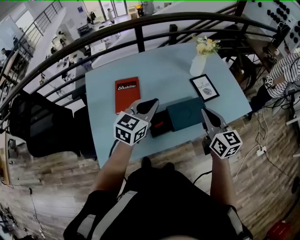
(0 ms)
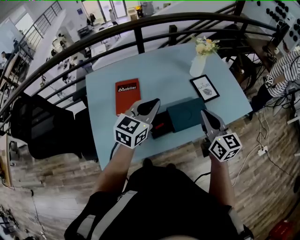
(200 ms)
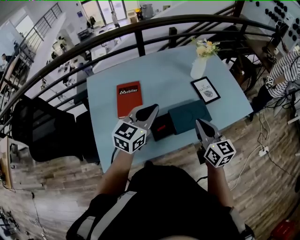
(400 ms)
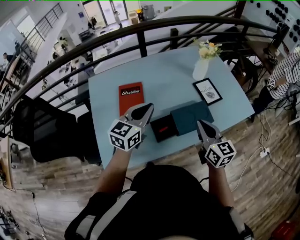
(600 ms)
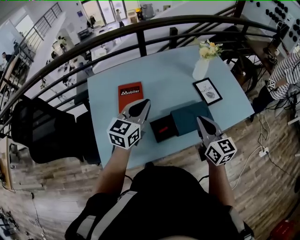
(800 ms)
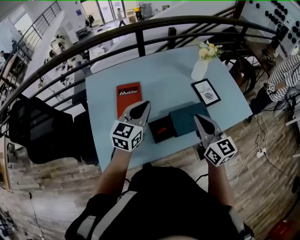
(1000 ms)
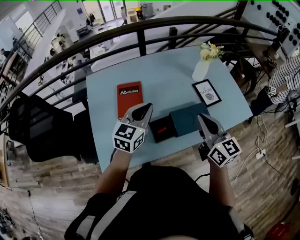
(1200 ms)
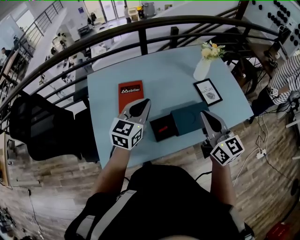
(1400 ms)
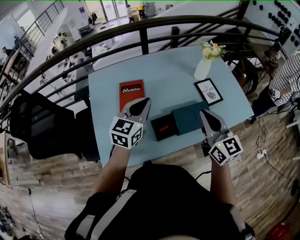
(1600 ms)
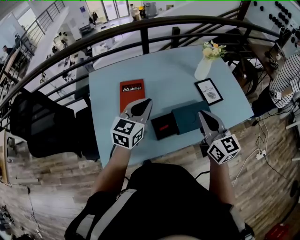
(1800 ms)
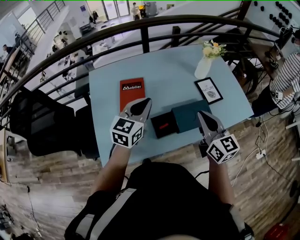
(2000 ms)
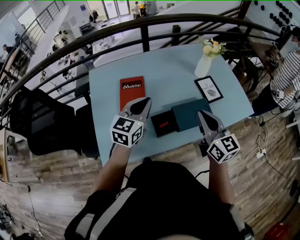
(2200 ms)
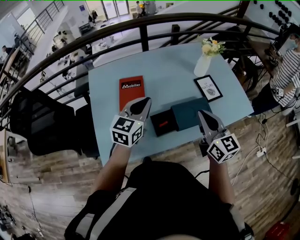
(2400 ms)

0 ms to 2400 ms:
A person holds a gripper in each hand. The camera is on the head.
0 ms to 1200 ms: The right gripper ends up roughly 5 cm from where it was, while the left gripper goes roughly 5 cm to the left.
1200 ms to 2400 ms: The grippers make only small movements.

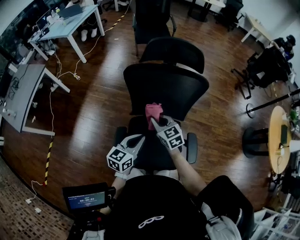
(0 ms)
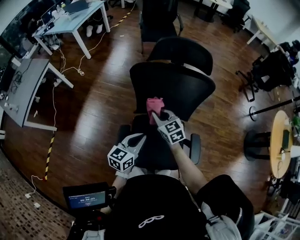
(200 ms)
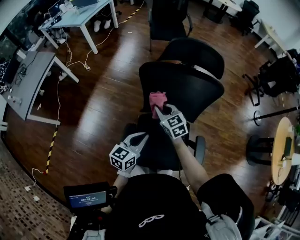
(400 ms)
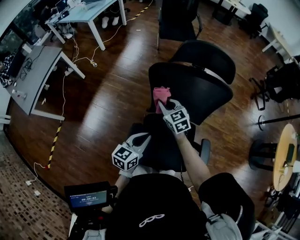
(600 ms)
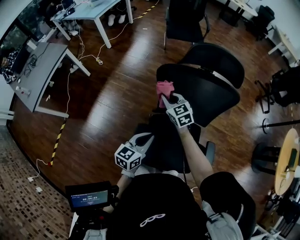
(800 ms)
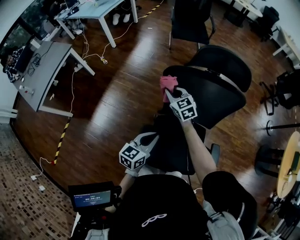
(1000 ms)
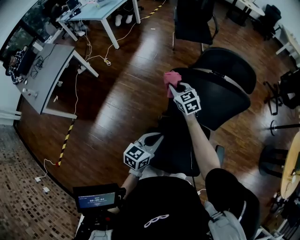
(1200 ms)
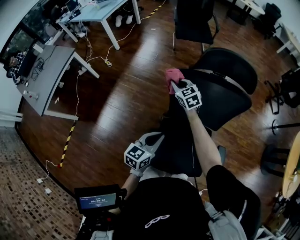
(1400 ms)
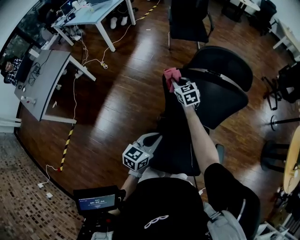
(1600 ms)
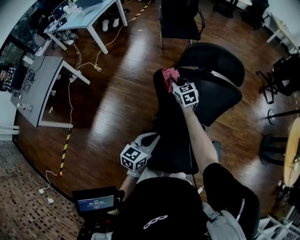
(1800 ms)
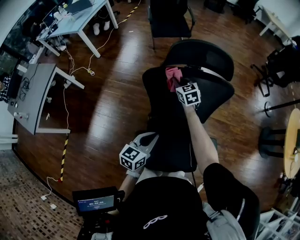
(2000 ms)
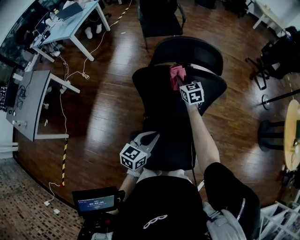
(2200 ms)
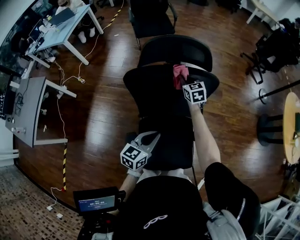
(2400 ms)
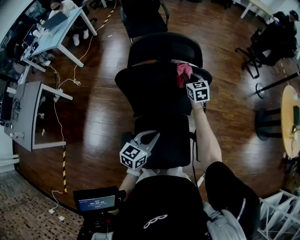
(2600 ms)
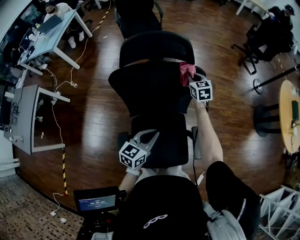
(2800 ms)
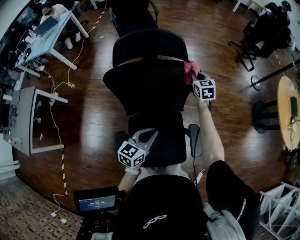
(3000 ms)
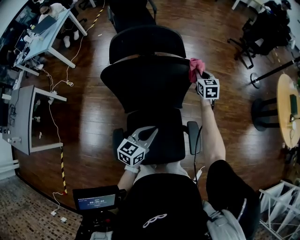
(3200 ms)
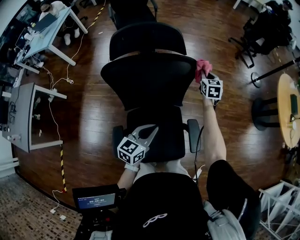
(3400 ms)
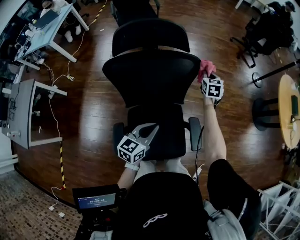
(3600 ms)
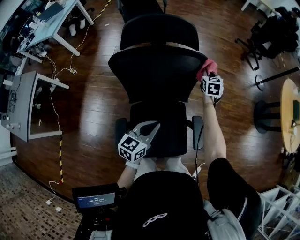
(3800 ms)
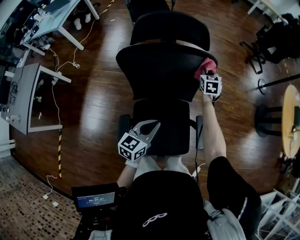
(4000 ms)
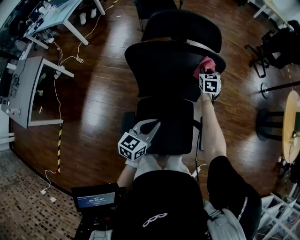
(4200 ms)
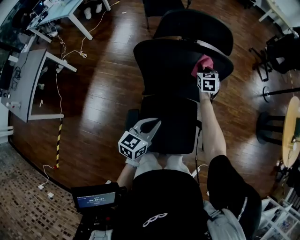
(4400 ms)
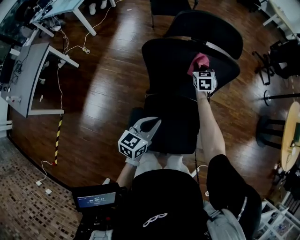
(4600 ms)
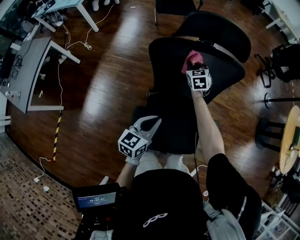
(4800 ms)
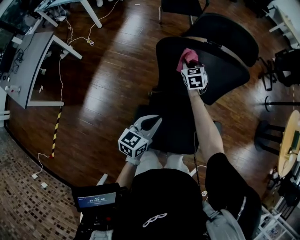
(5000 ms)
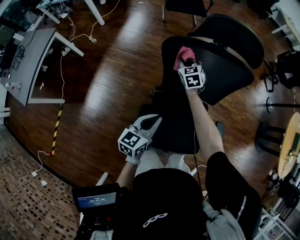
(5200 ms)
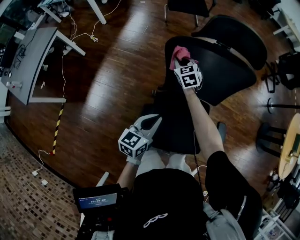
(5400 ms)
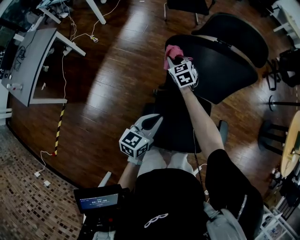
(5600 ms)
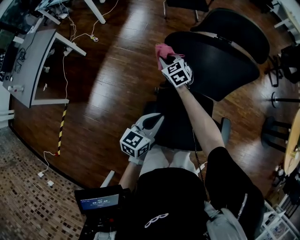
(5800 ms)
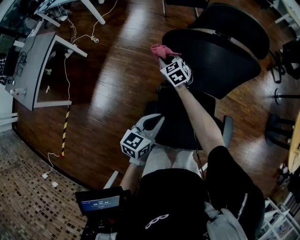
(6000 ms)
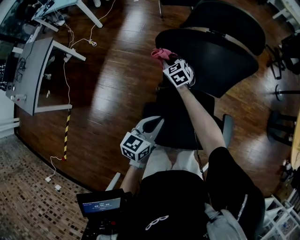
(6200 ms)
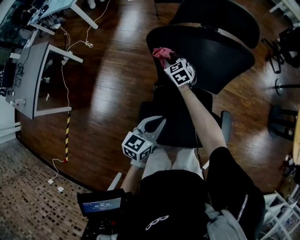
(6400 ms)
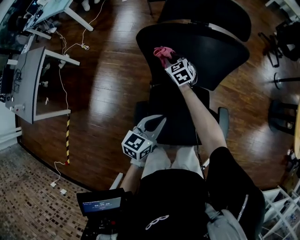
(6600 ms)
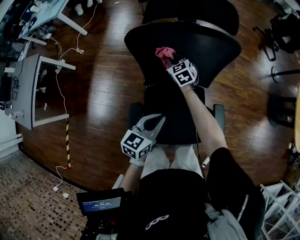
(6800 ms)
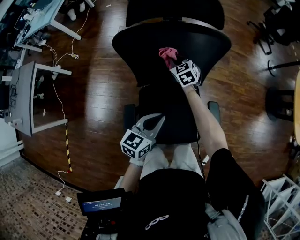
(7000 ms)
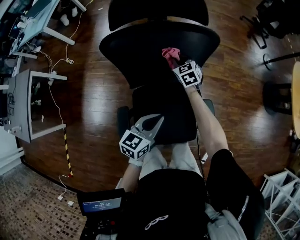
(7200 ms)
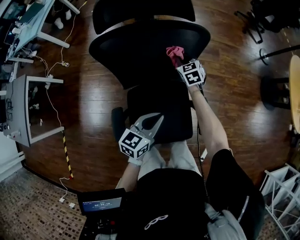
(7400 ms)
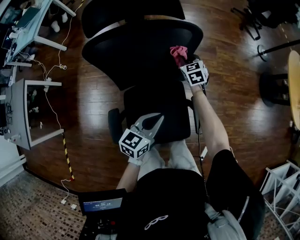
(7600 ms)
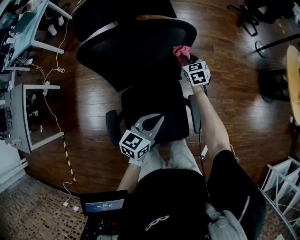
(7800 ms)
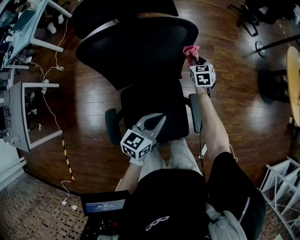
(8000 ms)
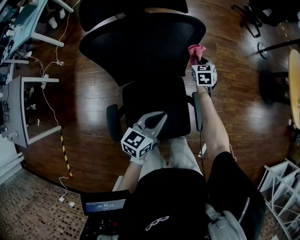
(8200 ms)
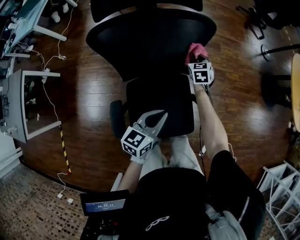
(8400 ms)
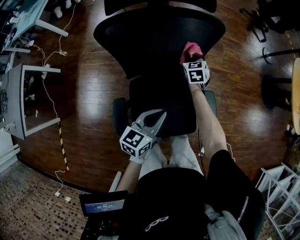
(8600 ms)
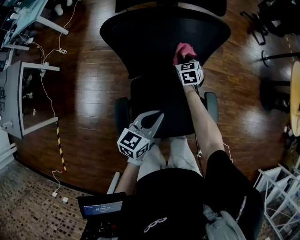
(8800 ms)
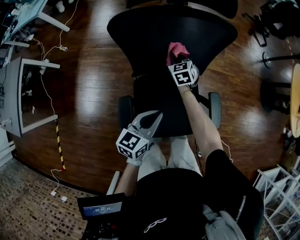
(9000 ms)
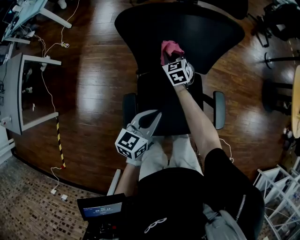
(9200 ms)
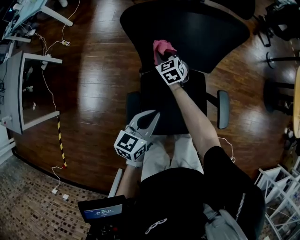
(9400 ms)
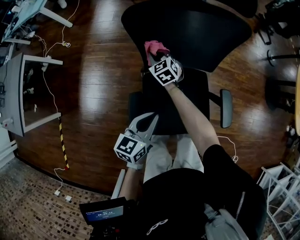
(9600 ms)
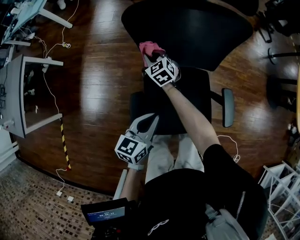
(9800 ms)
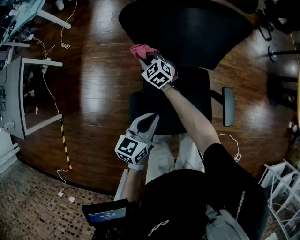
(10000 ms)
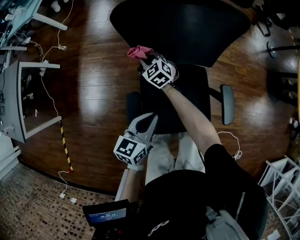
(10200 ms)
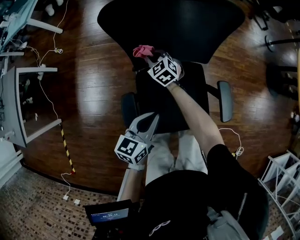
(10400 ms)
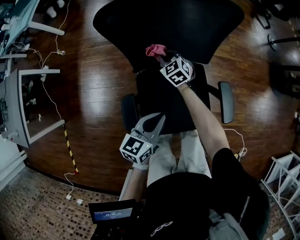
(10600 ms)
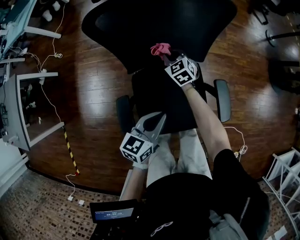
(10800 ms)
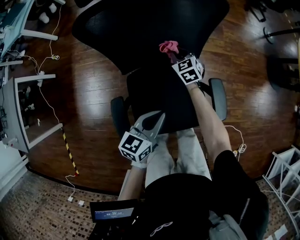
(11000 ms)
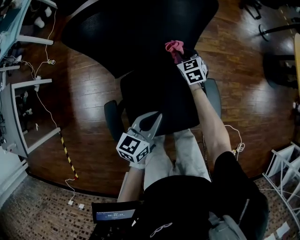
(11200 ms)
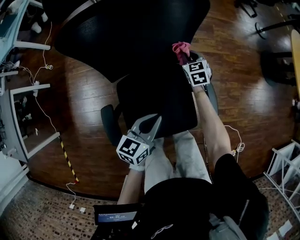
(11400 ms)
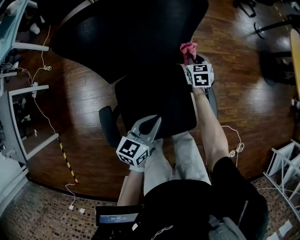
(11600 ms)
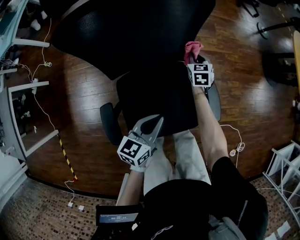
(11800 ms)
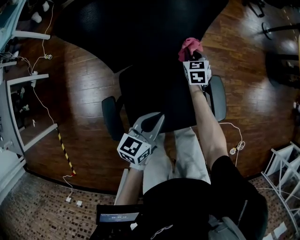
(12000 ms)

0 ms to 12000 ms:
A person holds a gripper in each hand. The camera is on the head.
0 ms to 1600 ms: The left gripper shifts approximately 10 cm to the left and forward. The right gripper shifts approximately 25 cm forward and to the left.
1600 ms to 3000 ms: The left gripper travels to the right by about 20 cm; the right gripper moves to the right, roughly 40 cm, and turns by some 30 degrees.
3000 ms to 4400 ms: The right gripper heads to the left, downward and backward, covering some 15 cm; the left gripper moves to the left and backward, some 10 cm.
4400 ms to 6000 ms: The left gripper shifts roughly 10 cm to the left. The right gripper goes roughly 35 cm to the left, and swivels some 40 degrees.
6000 ms to 7600 ms: The left gripper is displaced to the right by some 20 cm. The right gripper is displaced to the right by some 40 cm, and swivels some 30 degrees.
7600 ms to 9000 ms: The left gripper goes some 10 cm to the left and backward; the right gripper shifts approximately 15 cm to the left and backward.
9000 ms to 10400 ms: The left gripper shifts by some 5 cm, while the right gripper heads to the left and downward, covering roughly 15 cm.
10400 ms to 12000 ms: The left gripper travels to the right by some 10 cm; the right gripper is displaced to the right by roughly 30 cm, and turns by approximately 40 degrees.

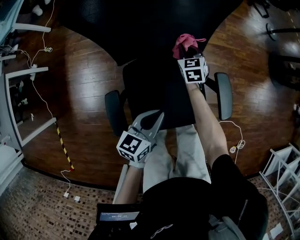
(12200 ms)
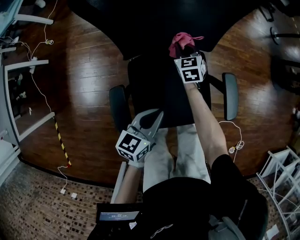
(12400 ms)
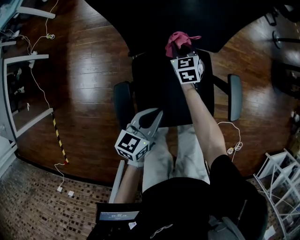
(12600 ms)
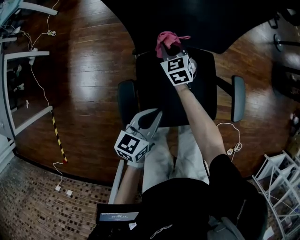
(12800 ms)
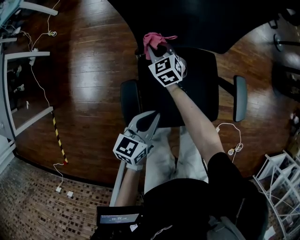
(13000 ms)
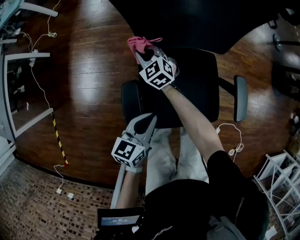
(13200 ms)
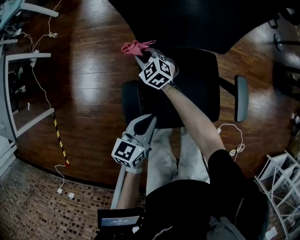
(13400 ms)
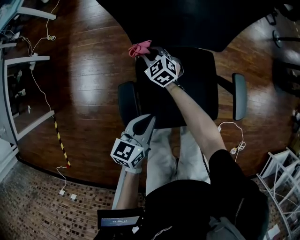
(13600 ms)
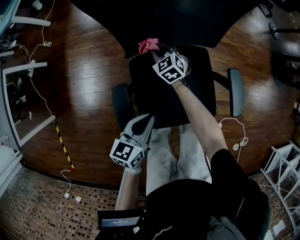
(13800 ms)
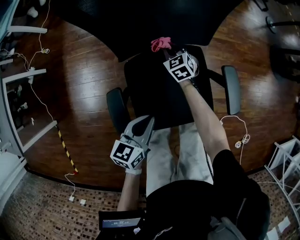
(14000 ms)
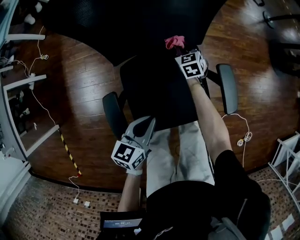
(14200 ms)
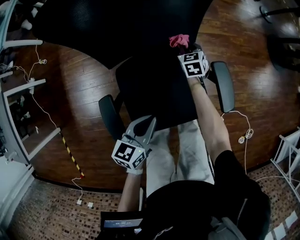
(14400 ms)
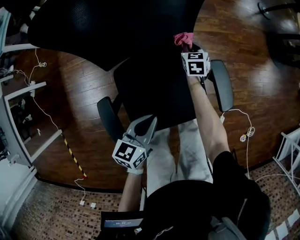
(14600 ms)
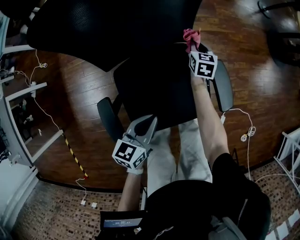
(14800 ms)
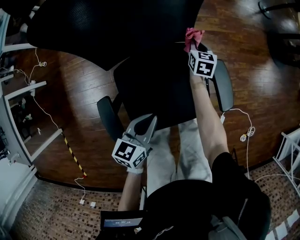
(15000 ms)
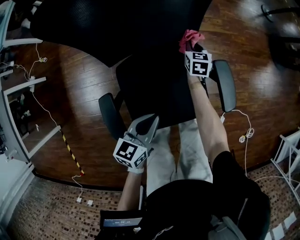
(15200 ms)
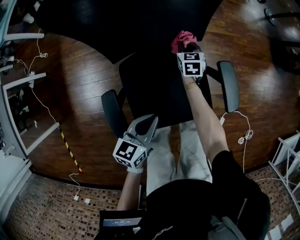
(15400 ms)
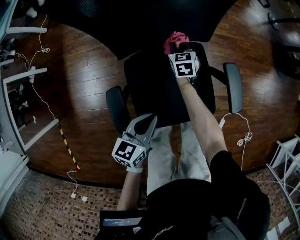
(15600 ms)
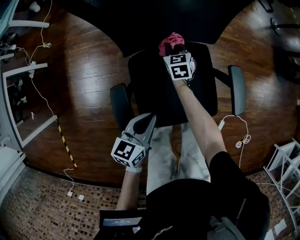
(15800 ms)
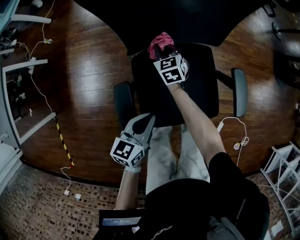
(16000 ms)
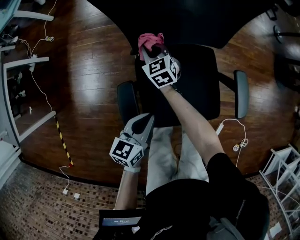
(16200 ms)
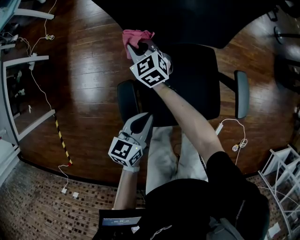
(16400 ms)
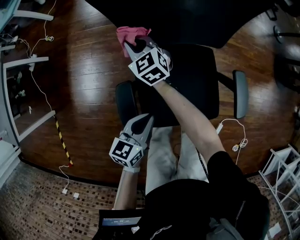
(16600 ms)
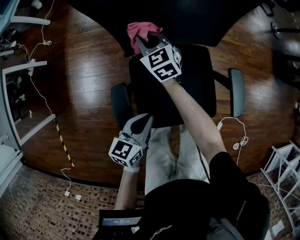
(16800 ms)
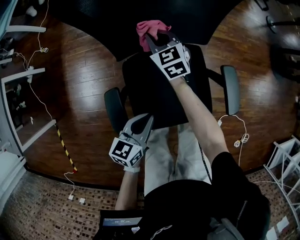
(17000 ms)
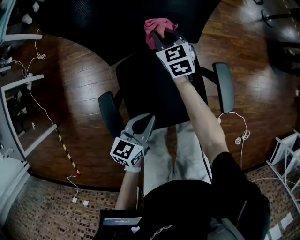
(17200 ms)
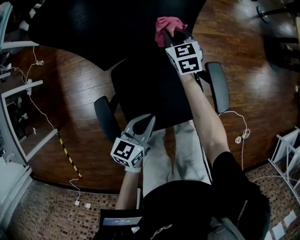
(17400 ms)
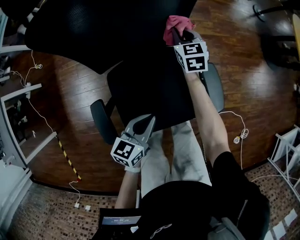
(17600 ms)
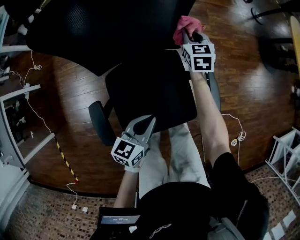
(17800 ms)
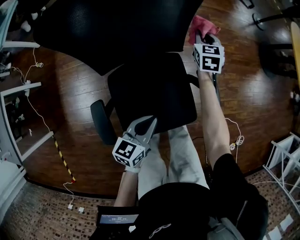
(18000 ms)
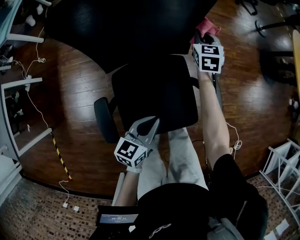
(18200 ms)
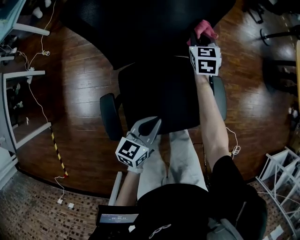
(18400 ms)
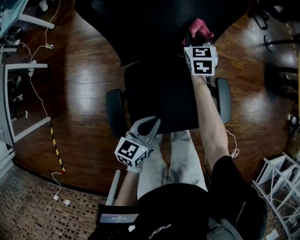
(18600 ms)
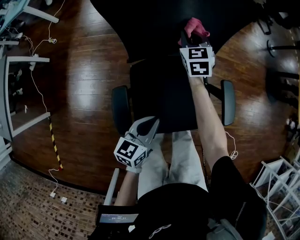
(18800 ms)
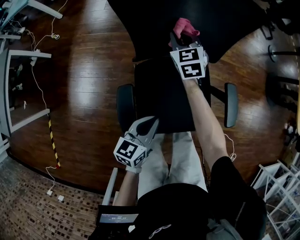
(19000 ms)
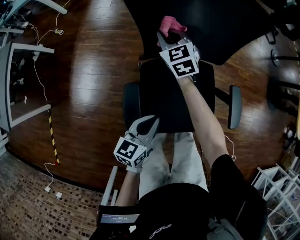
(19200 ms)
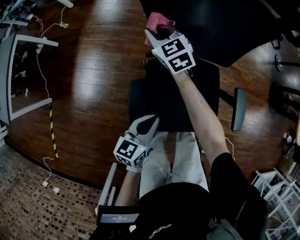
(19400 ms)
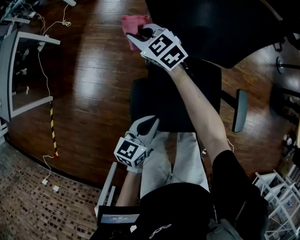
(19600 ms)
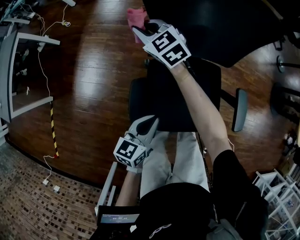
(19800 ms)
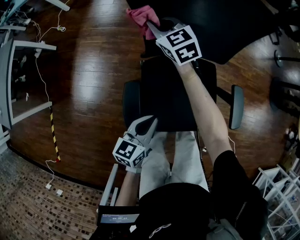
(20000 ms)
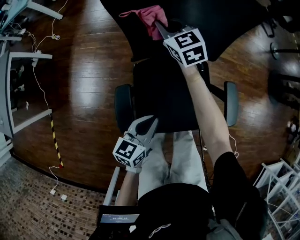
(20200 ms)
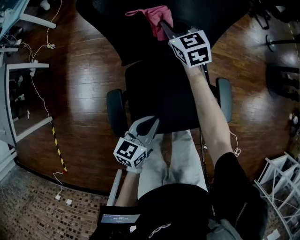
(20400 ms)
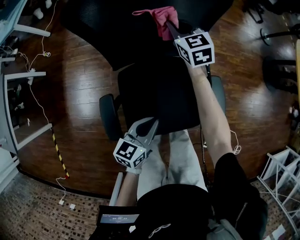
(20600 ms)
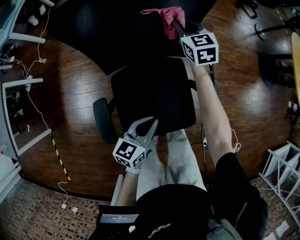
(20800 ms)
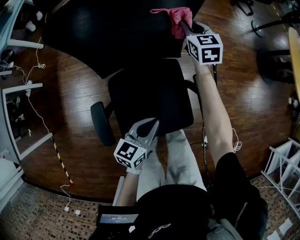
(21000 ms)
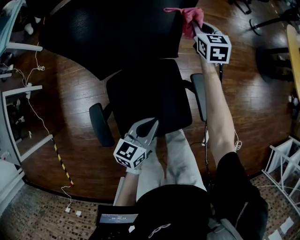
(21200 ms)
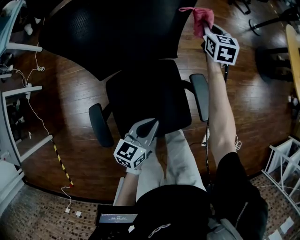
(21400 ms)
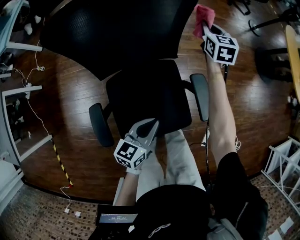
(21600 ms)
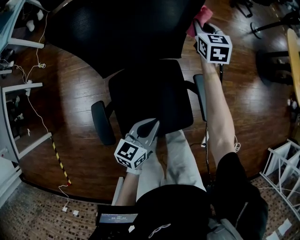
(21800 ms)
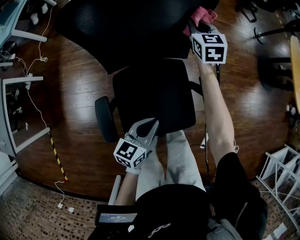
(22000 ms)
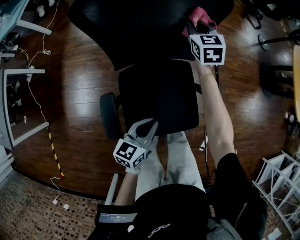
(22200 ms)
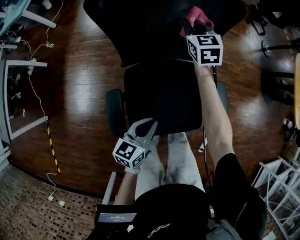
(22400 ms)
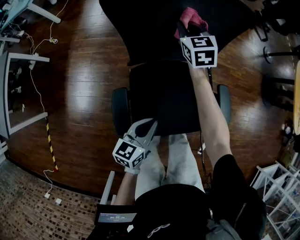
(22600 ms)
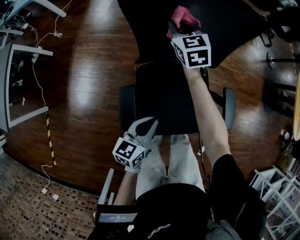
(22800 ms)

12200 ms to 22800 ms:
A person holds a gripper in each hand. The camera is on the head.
12200 ms to 13800 ms: The right gripper heads to the left, covering some 20 cm, and turns by some 20 degrees. The left gripper is displaced to the left by approximately 10 cm.
13800 ms to 15200 ms: The right gripper shifts by approximately 30 cm, and rotates some 40 degrees; the left gripper changes place by roughly 10 cm.
15200 ms to 16800 ms: The right gripper changes place by roughly 35 cm, and rotates roughly 40 degrees. Meanwhile the left gripper moves some 10 cm.
16800 ms to 18200 ms: The left gripper heads to the right and forward, covering approximately 15 cm. The right gripper moves to the right and forward, approximately 35 cm, and turns by about 30 degrees.
18200 ms to 19800 ms: The left gripper moves approximately 15 cm. Meanwhile the right gripper moves some 50 cm, and turns by about 60 degrees.
19800 ms to 21200 ms: The right gripper ends up roughly 50 cm from where it was, and rotates approximately 50 degrees. Meanwhile the left gripper moves roughly 20 cm.
21200 ms to 22800 ms: The left gripper goes some 15 cm to the left and backward, while the right gripper goes about 30 cm to the left, and rotates some 20 degrees.
